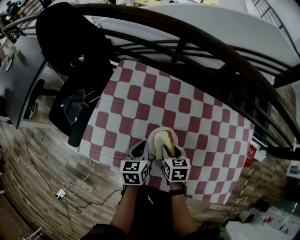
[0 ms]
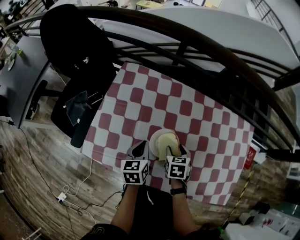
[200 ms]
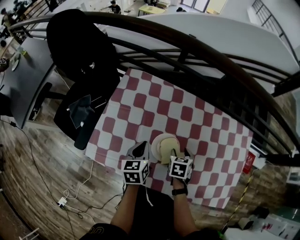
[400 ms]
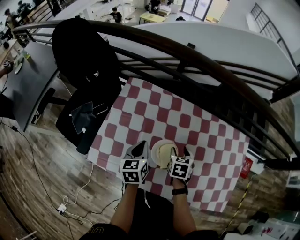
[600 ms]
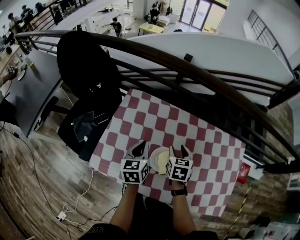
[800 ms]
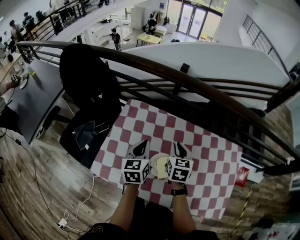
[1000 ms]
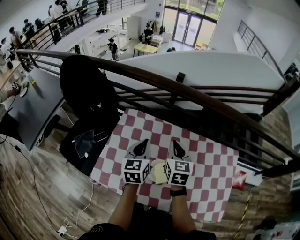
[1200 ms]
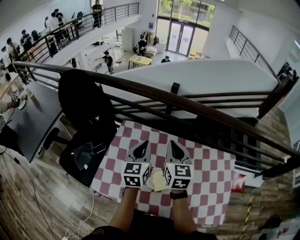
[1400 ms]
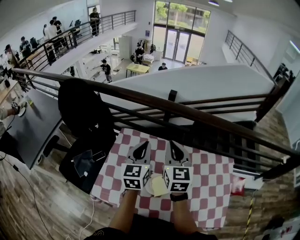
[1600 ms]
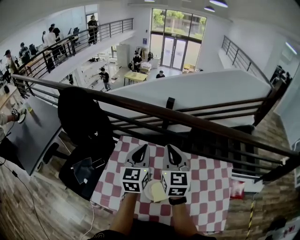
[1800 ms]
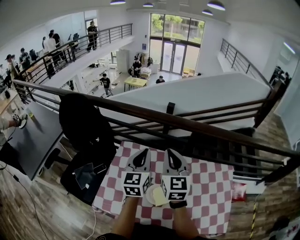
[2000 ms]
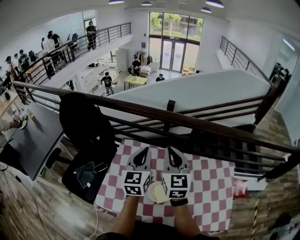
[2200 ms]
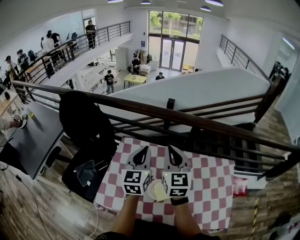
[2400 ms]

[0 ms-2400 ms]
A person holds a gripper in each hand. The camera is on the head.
0 ms to 1200 ms: Both grippers move upward and forward, roughly 25 cm. The right gripper rotates approximately 30 degrees, and closes its fingers, while the left gripper rotates about 20 degrees.
1200 ms to 2400 ms: The grippers both shift upward by about 15 cm. The right gripper rotates roughly 20 degrees.

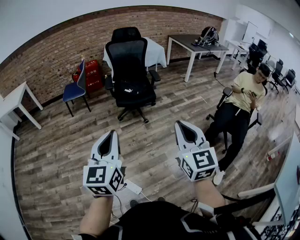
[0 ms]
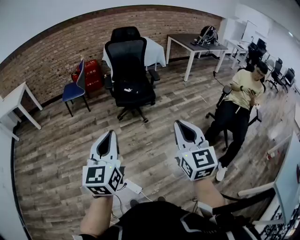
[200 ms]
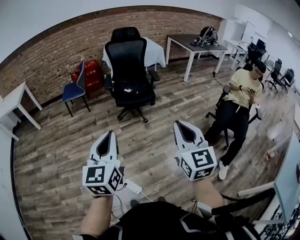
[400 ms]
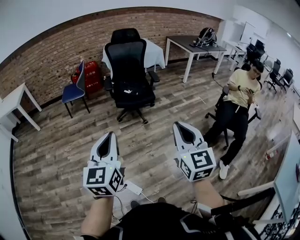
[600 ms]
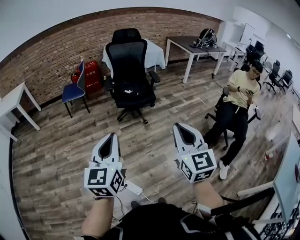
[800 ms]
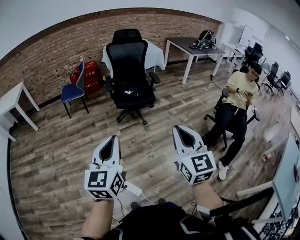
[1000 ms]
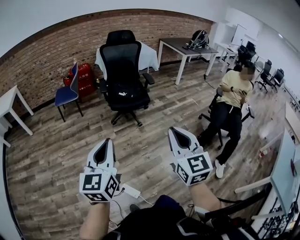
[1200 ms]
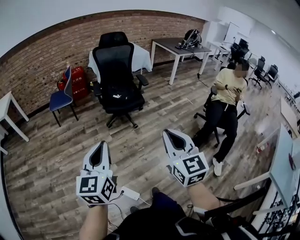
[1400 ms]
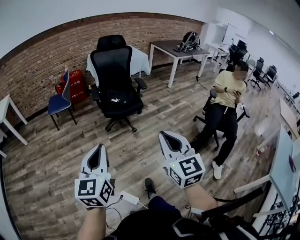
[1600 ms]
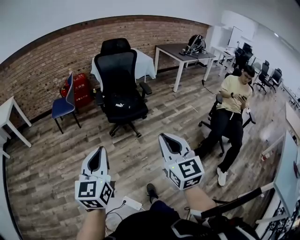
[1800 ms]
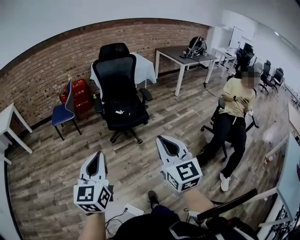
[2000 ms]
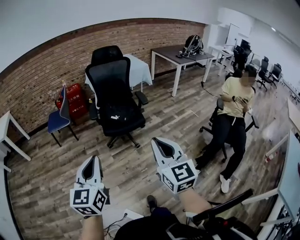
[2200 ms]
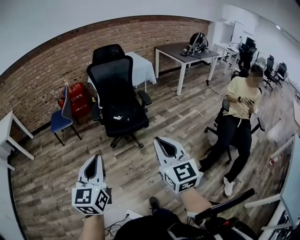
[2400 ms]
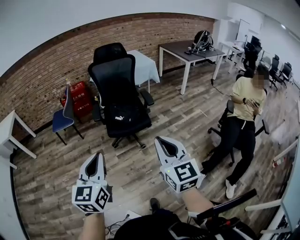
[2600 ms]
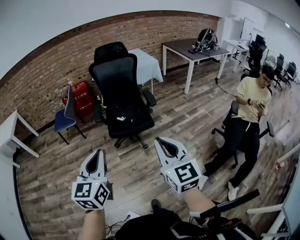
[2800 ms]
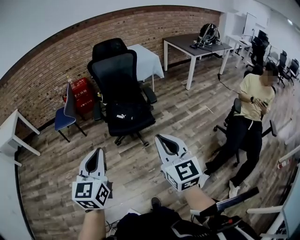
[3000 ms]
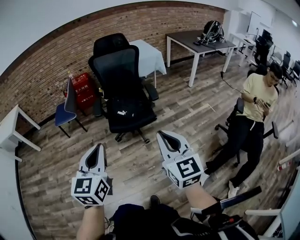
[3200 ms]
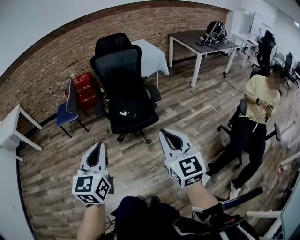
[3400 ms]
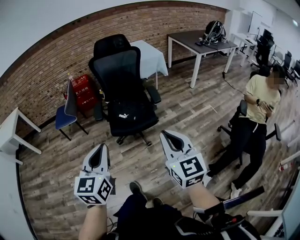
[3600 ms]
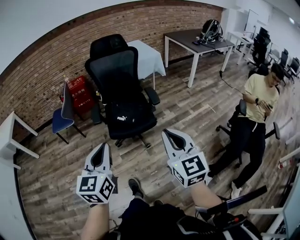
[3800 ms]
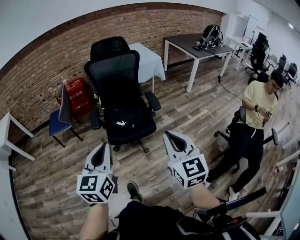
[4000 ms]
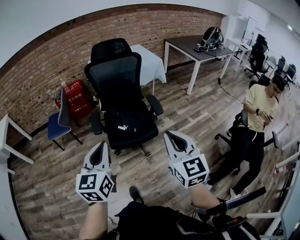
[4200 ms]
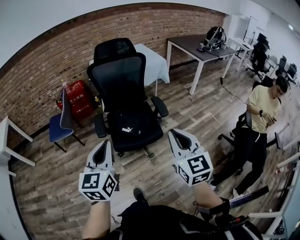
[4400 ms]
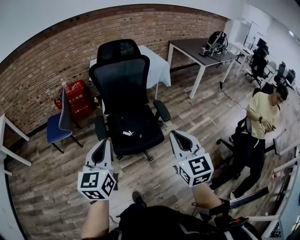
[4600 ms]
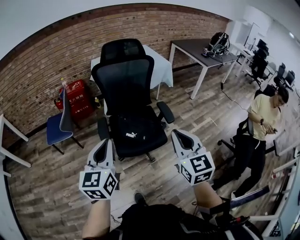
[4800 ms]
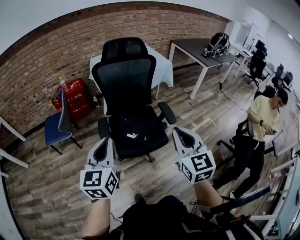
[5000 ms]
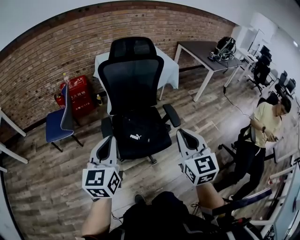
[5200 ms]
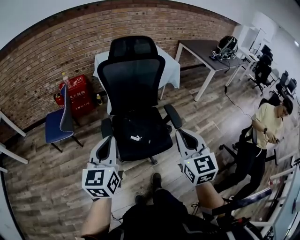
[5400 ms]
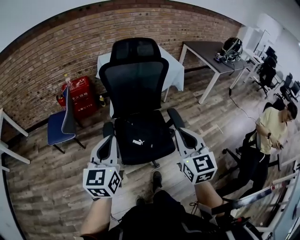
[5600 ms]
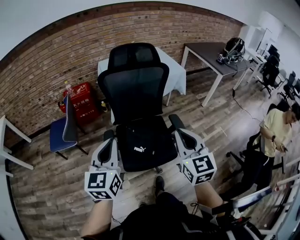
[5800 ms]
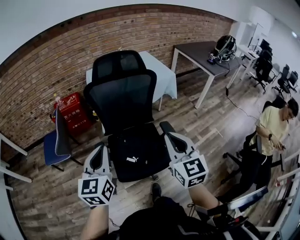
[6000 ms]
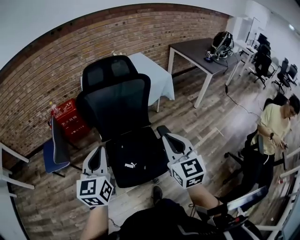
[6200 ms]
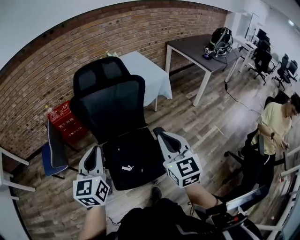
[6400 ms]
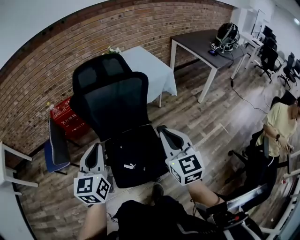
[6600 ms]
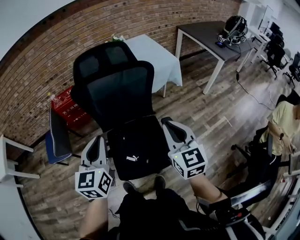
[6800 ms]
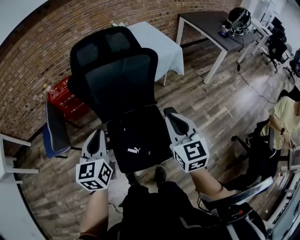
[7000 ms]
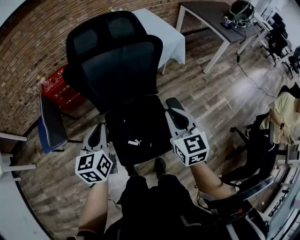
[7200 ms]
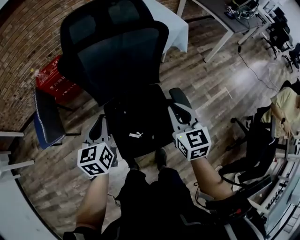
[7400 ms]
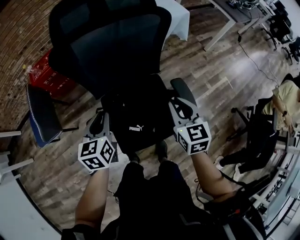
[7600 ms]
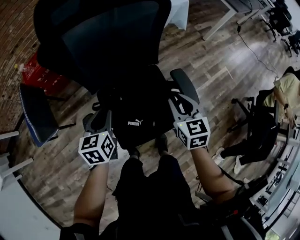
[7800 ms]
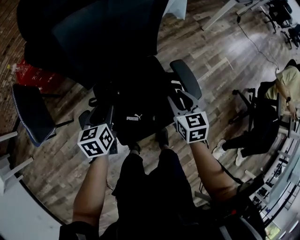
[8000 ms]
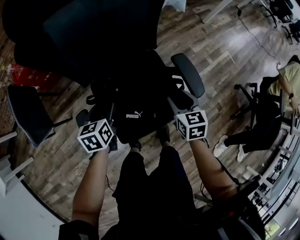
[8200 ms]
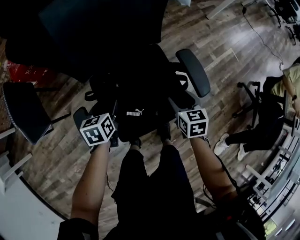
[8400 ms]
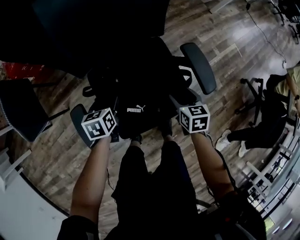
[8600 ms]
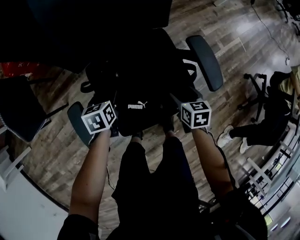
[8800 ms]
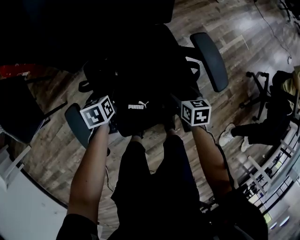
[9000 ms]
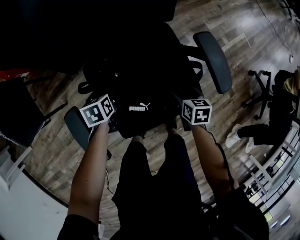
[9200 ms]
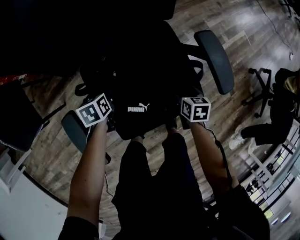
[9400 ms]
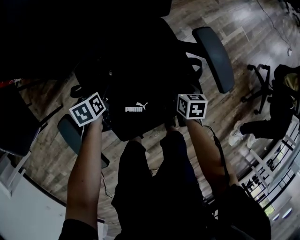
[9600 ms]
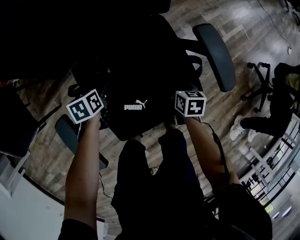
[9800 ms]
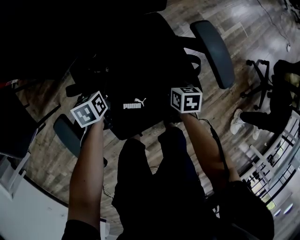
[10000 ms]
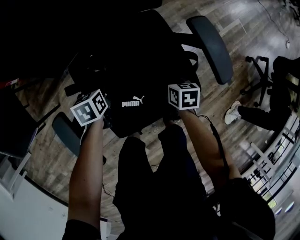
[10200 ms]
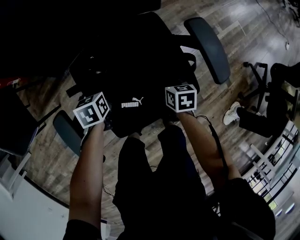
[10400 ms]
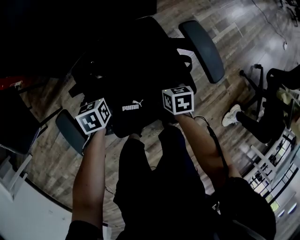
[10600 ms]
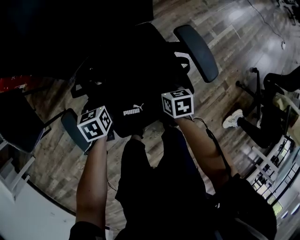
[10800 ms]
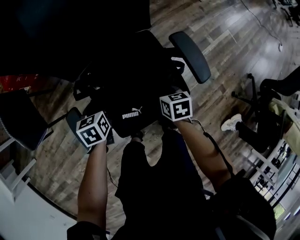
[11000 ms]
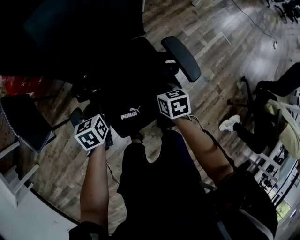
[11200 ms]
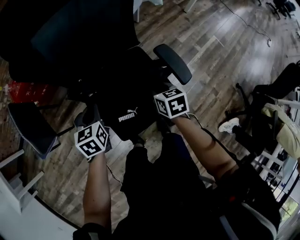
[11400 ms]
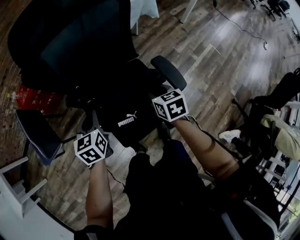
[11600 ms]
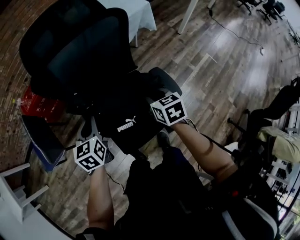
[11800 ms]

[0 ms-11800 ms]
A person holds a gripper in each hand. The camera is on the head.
0 ms to 1400 ms: The two grippers go some 5 cm to the left.
1400 ms to 3000 ms: The right gripper heads forward, covering approximately 30 cm. The left gripper goes about 30 cm forward and to the right.
3000 ms to 4400 ms: The grippers both shift forward by about 25 cm.
4400 ms to 6000 ms: The grippers both shift forward by some 25 cm.
6000 ms to 7400 ms: The right gripper moves downward and forward, approximately 25 cm, while the left gripper heads forward and downward, covering roughly 25 cm.
7400 ms to 8800 ms: The grippers both shift downward by about 35 cm. The right gripper tips its fingers downward by about 30 degrees, and opens up; the left gripper changes its angle by some 30 degrees, and opens its fingers.
8800 ms to 10400 ms: The right gripper travels downward by roughly 10 cm, and closes, while the left gripper is displaced downward by some 5 cm, and closes.
10400 ms to 11800 ms: Both grippers move upward, about 35 cm. The left gripper rotates about 30 degrees. The right gripper rotates some 30 degrees.

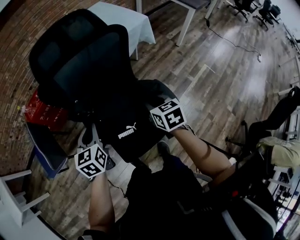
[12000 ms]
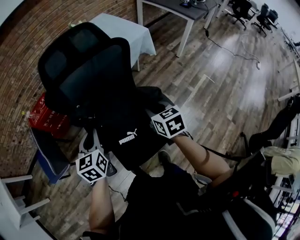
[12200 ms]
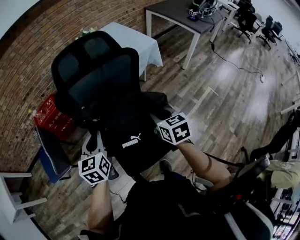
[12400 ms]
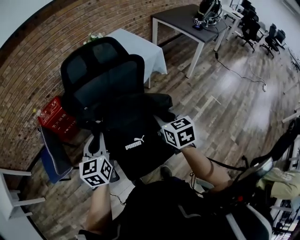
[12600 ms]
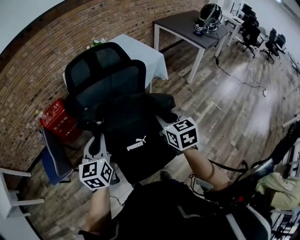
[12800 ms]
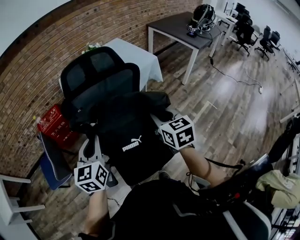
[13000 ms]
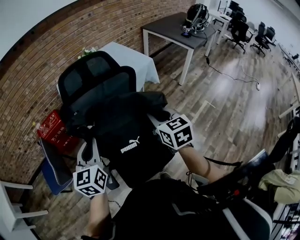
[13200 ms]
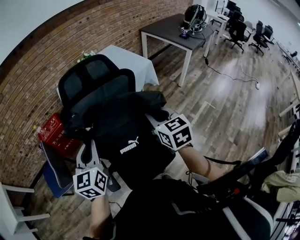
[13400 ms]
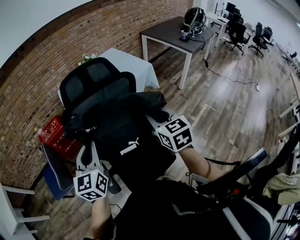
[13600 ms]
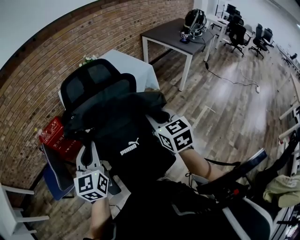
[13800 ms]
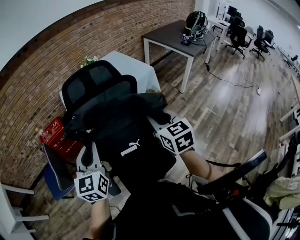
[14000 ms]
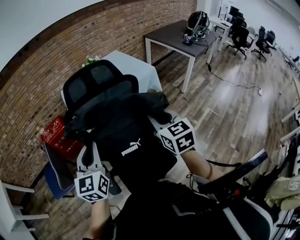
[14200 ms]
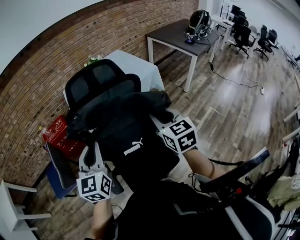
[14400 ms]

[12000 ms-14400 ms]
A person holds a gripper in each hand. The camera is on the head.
12000 ms to 13200 ms: The two grippers go roughly 15 cm upward.
13200 ms to 14400 ms: There are only small adjustments of the grippers.

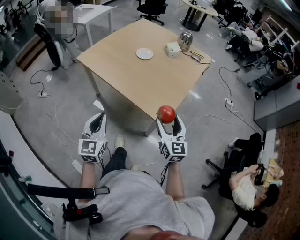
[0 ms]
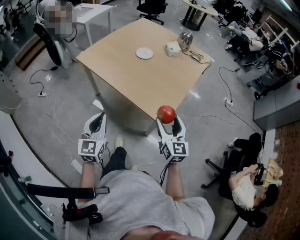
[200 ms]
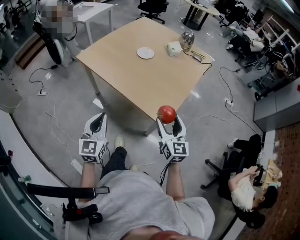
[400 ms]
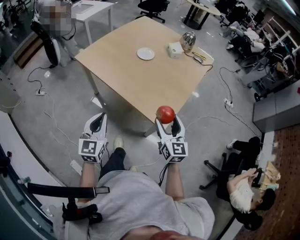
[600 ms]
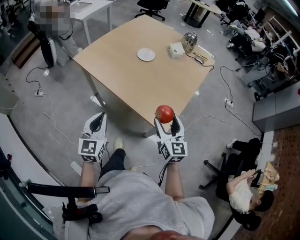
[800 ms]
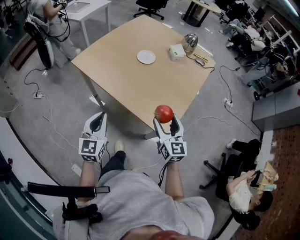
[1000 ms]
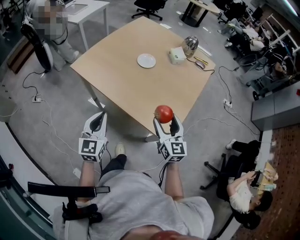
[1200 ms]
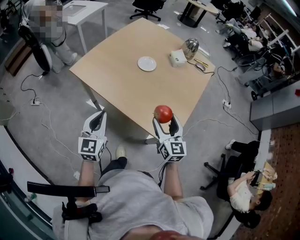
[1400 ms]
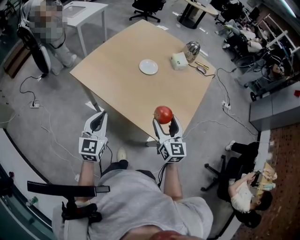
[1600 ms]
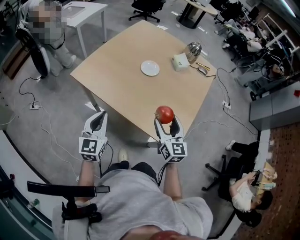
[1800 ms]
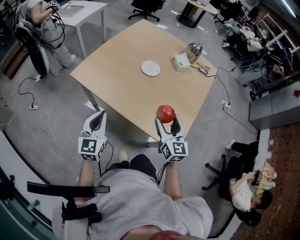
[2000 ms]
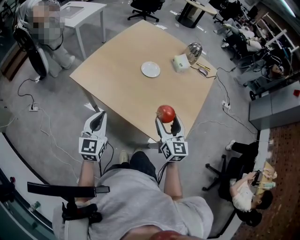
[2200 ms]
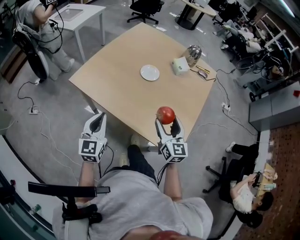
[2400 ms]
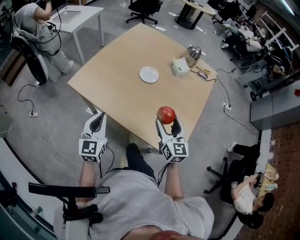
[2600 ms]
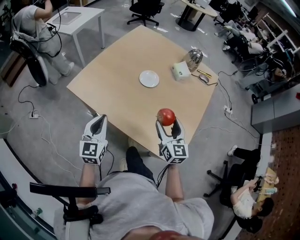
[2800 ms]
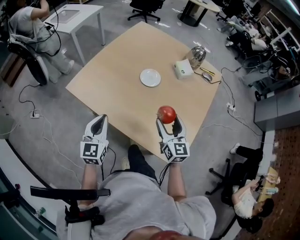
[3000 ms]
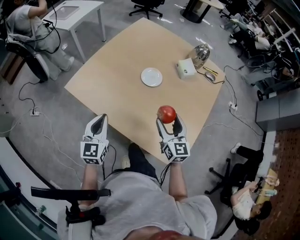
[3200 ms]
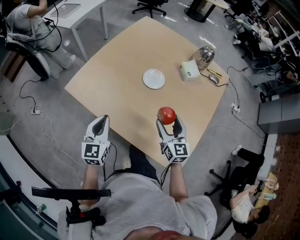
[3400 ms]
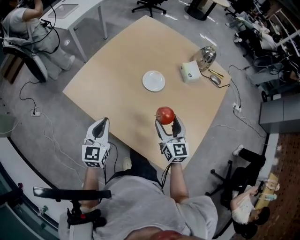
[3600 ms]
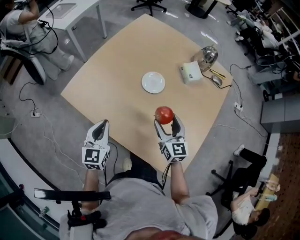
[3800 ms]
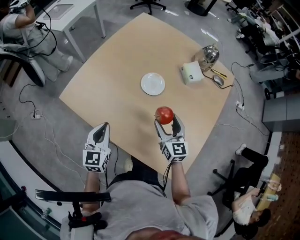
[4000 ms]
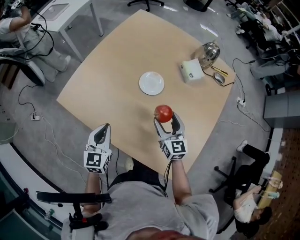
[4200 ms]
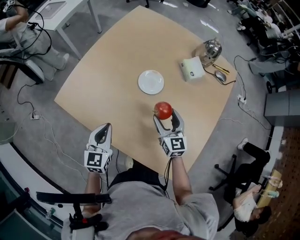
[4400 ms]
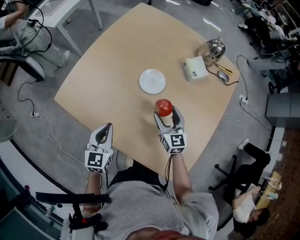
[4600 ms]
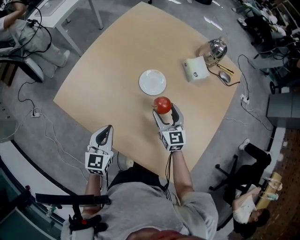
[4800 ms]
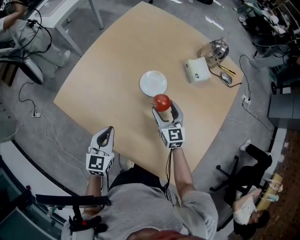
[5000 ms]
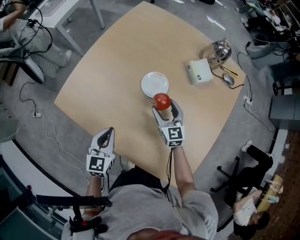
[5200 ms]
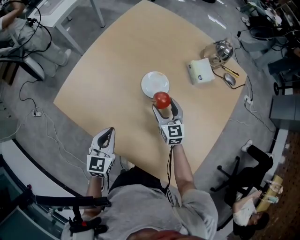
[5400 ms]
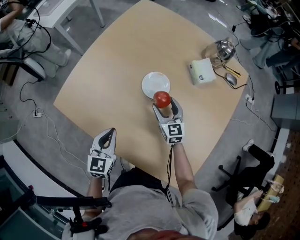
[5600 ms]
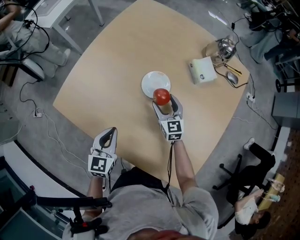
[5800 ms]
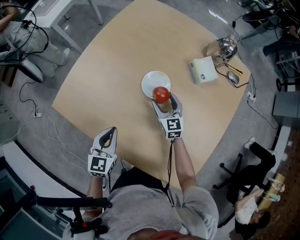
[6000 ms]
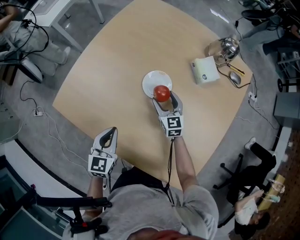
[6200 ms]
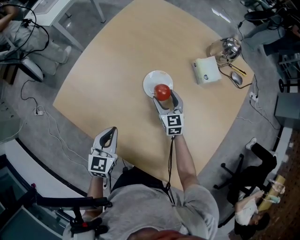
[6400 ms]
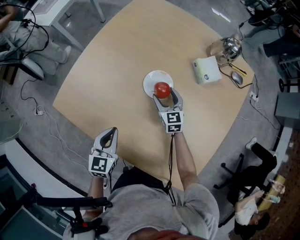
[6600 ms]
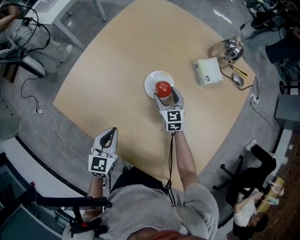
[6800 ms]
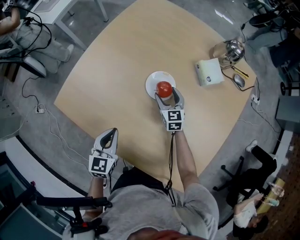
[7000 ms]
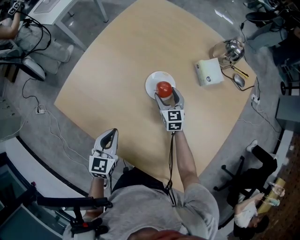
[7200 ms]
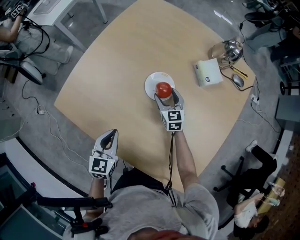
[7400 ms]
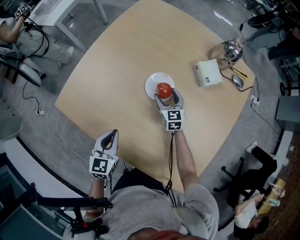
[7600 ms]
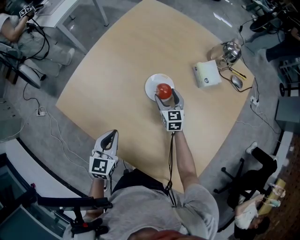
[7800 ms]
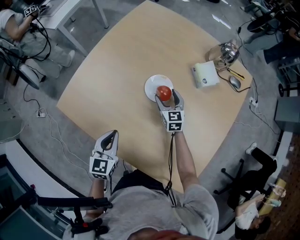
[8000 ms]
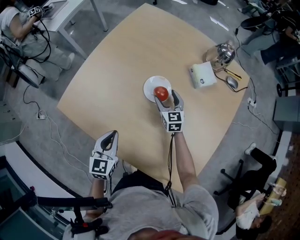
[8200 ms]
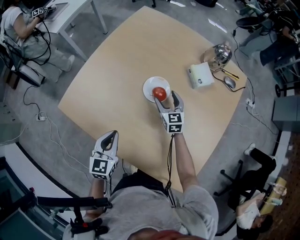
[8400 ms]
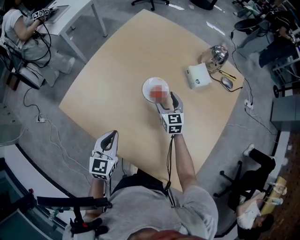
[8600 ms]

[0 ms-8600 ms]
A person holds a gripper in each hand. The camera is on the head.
0 ms to 1400 ms: The right gripper shifts approximately 20 cm forward and to the left. The left gripper shifts roughly 20 cm forward.
1400 ms to 2800 ms: The two grippers go approximately 10 cm forward.
2800 ms to 4400 ms: Both grippers move forward and downward, approximately 20 cm.
4400 ms to 5800 ms: The right gripper goes about 15 cm forward and downward; the left gripper shifts approximately 5 cm downward.
5800 ms to 7200 ms: The right gripper changes place by some 5 cm.
7200 ms to 8600 ms: The right gripper travels upward by roughly 5 cm. The left gripper ends up some 5 cm from where it was.
